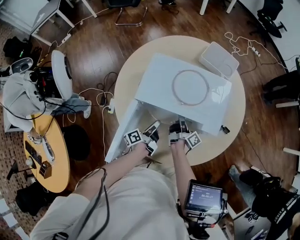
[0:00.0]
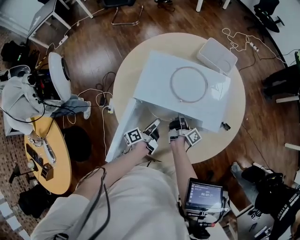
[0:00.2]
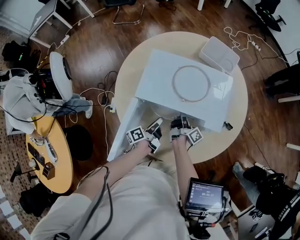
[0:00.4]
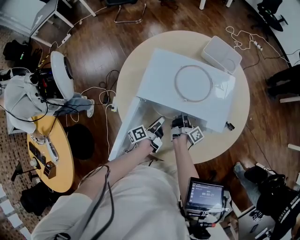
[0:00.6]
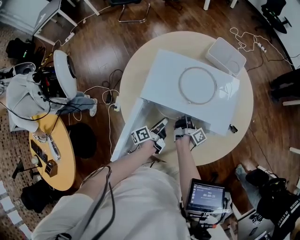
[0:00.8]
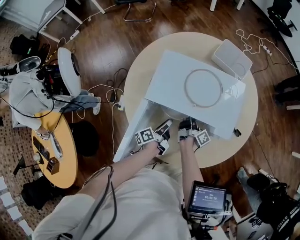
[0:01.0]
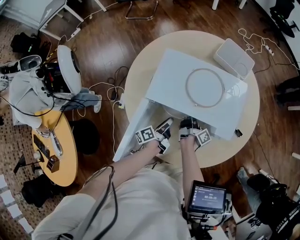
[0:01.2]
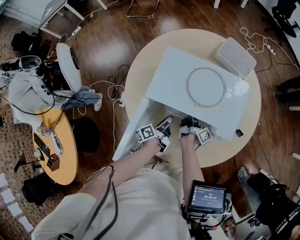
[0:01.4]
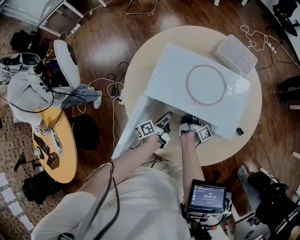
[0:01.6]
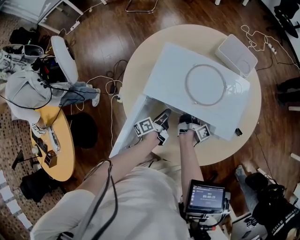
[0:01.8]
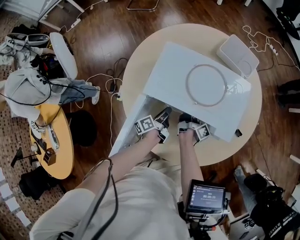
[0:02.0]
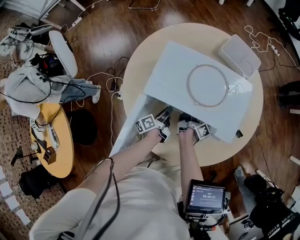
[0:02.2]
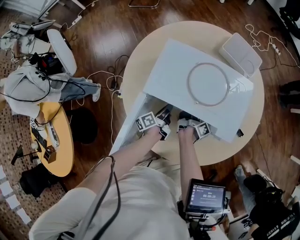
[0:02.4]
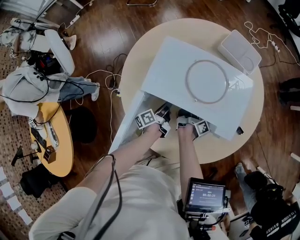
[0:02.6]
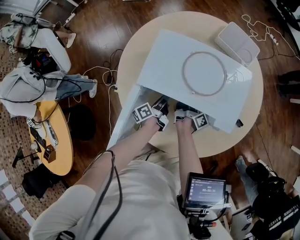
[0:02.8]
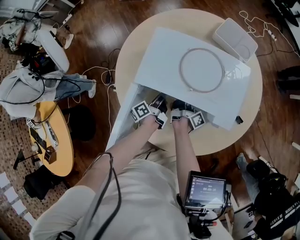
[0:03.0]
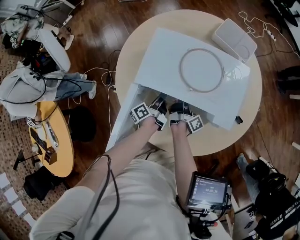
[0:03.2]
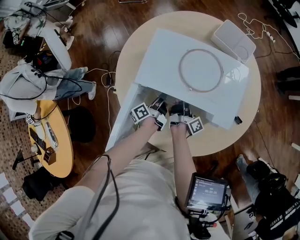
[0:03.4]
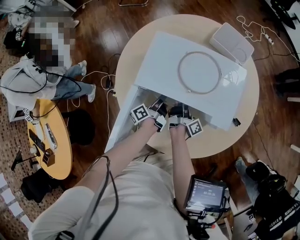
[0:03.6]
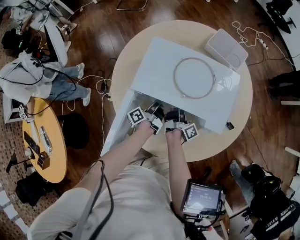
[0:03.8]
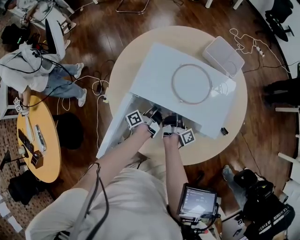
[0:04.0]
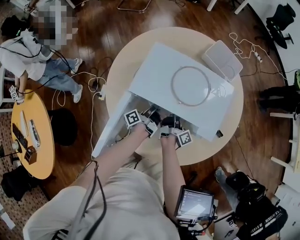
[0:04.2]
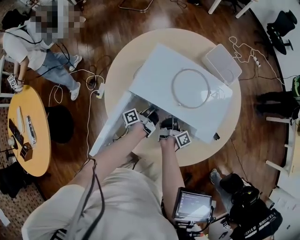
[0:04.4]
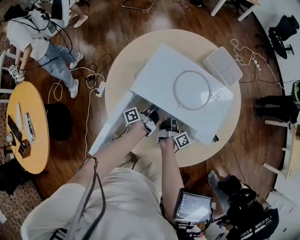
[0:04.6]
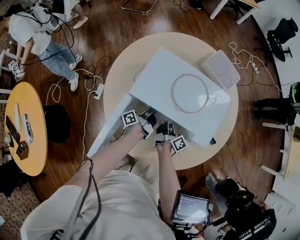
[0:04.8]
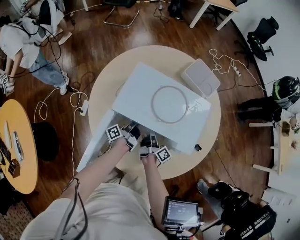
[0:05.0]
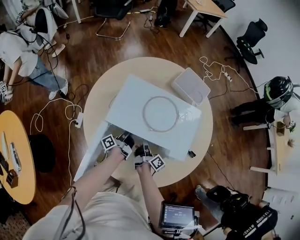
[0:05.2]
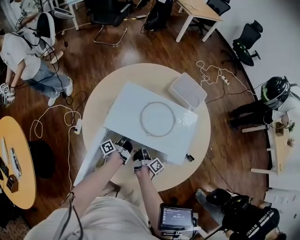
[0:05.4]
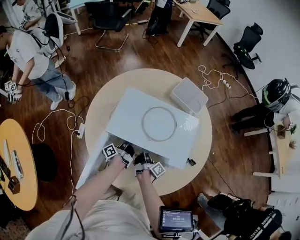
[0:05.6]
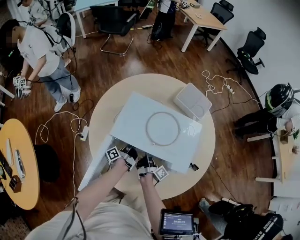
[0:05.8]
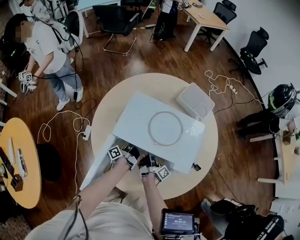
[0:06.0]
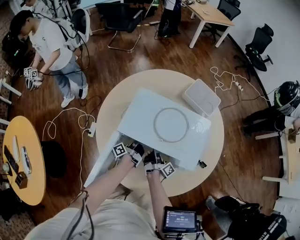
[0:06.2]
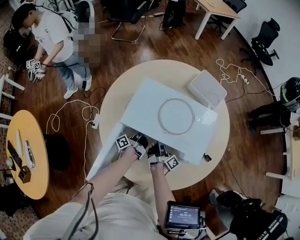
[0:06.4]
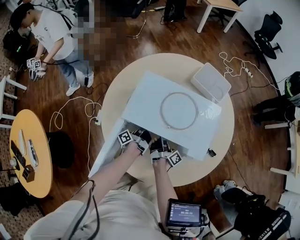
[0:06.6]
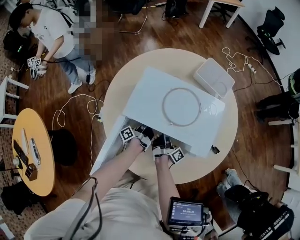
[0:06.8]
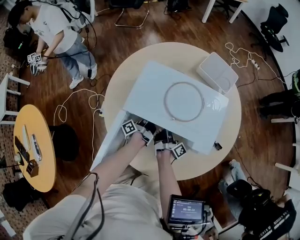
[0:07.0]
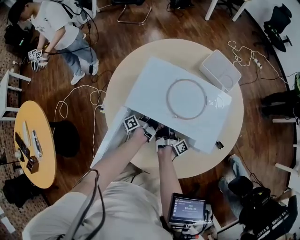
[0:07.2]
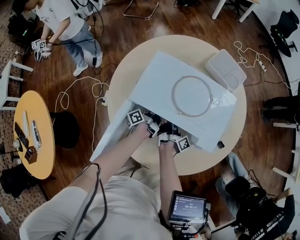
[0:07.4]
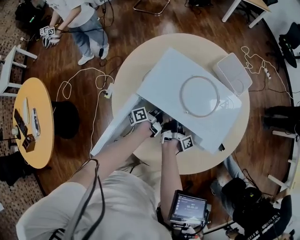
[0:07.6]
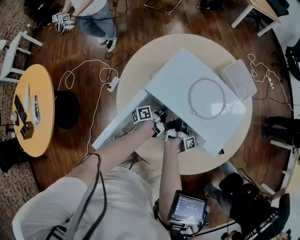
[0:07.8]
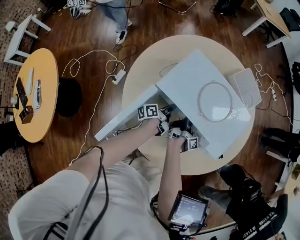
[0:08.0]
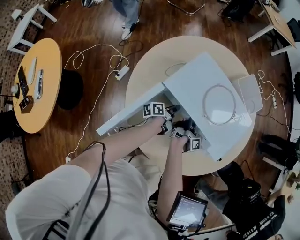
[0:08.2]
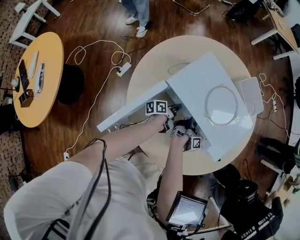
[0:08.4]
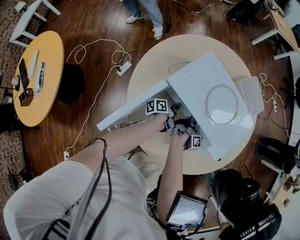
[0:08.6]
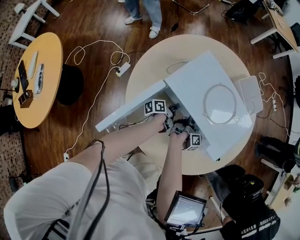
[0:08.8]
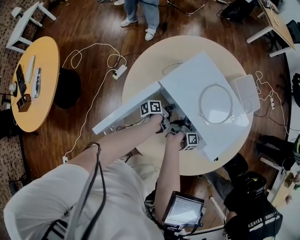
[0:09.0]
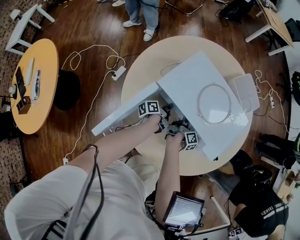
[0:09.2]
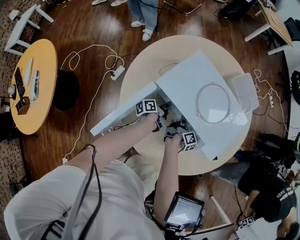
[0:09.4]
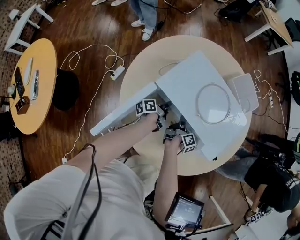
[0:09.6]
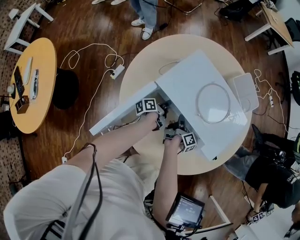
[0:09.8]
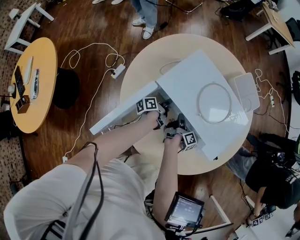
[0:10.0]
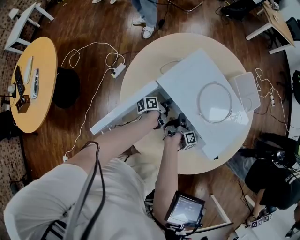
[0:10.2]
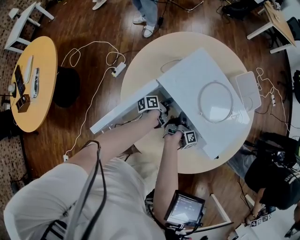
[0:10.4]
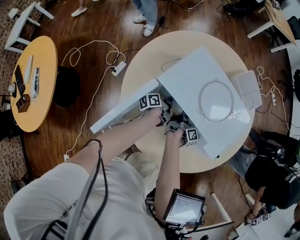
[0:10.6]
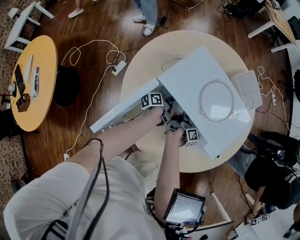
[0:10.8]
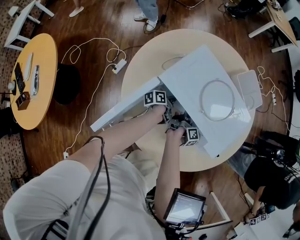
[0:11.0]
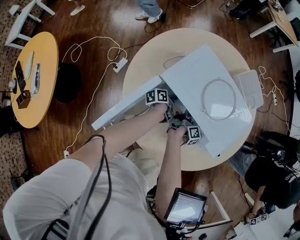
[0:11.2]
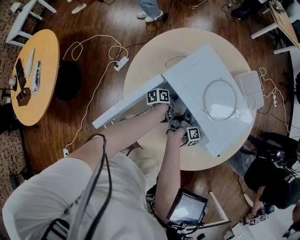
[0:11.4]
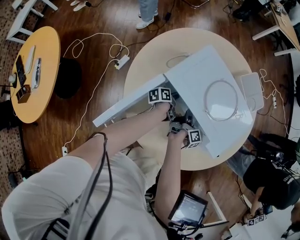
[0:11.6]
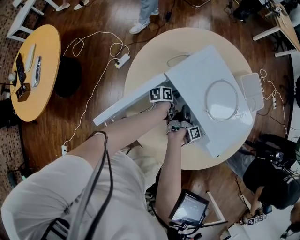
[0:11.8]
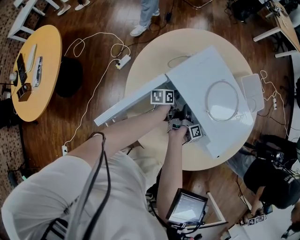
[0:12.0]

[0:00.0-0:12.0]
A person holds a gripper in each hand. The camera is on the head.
0:00.0 to 0:01.6: The right gripper changes place by about 5 cm.
0:07.6 to 0:09.0: The right gripper swivels approximately 20 degrees.

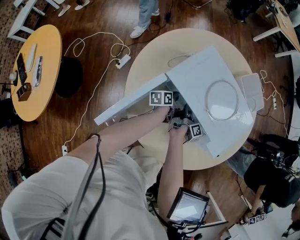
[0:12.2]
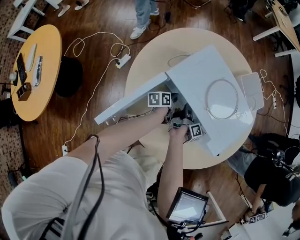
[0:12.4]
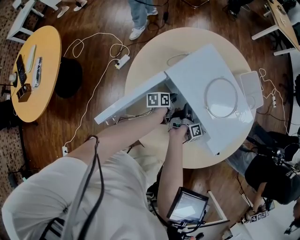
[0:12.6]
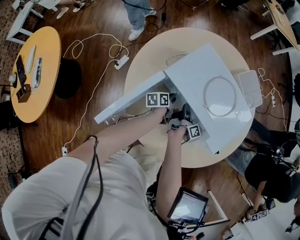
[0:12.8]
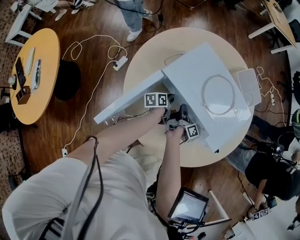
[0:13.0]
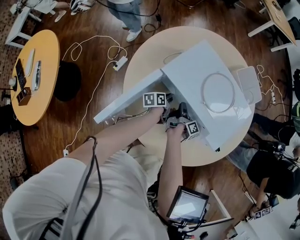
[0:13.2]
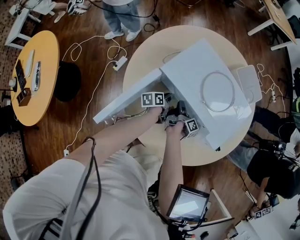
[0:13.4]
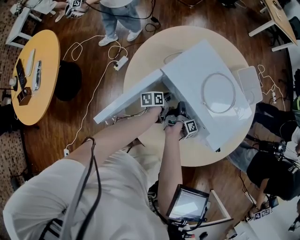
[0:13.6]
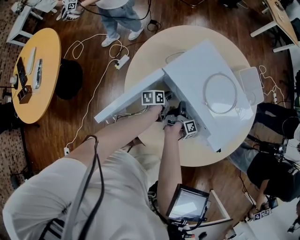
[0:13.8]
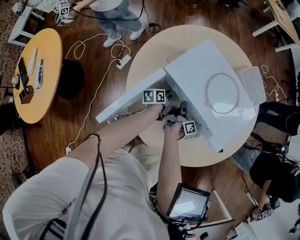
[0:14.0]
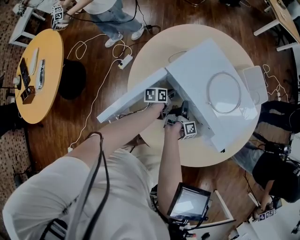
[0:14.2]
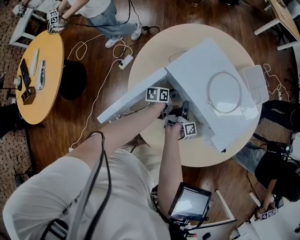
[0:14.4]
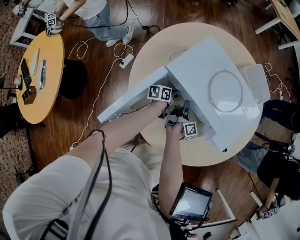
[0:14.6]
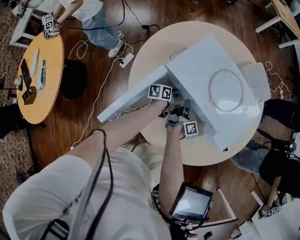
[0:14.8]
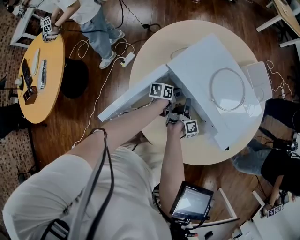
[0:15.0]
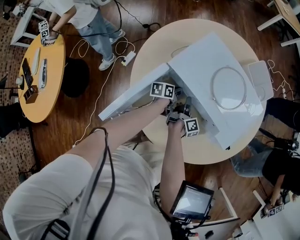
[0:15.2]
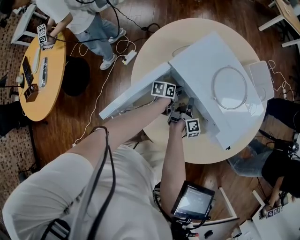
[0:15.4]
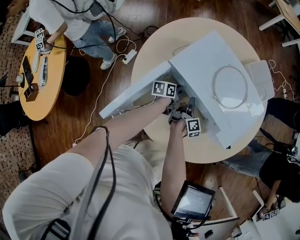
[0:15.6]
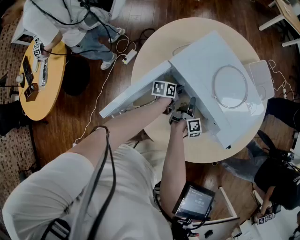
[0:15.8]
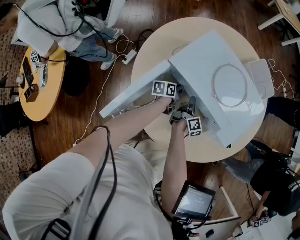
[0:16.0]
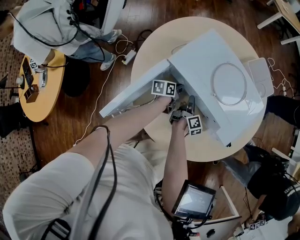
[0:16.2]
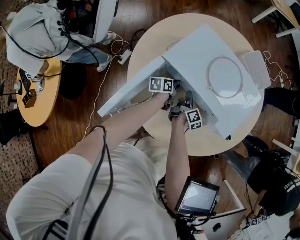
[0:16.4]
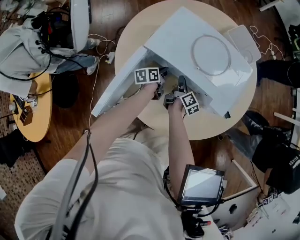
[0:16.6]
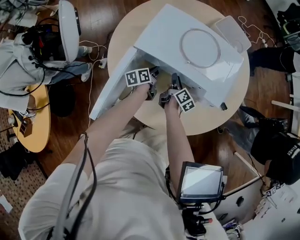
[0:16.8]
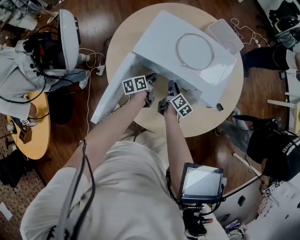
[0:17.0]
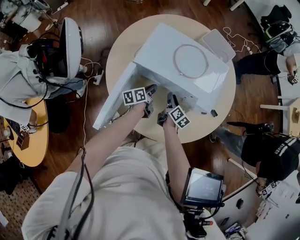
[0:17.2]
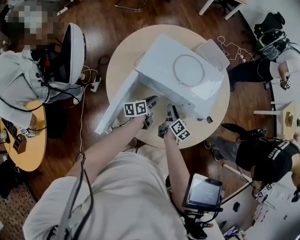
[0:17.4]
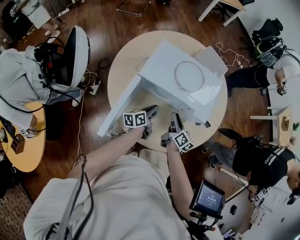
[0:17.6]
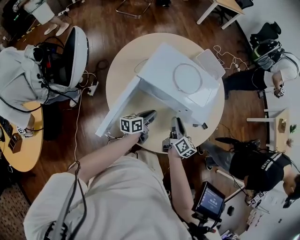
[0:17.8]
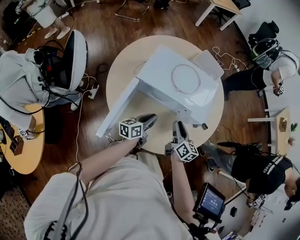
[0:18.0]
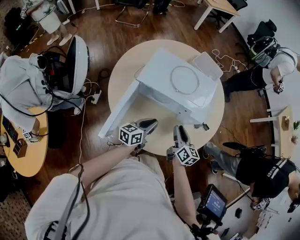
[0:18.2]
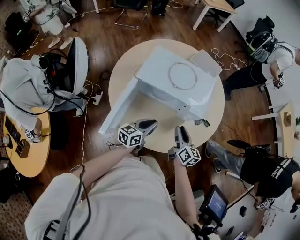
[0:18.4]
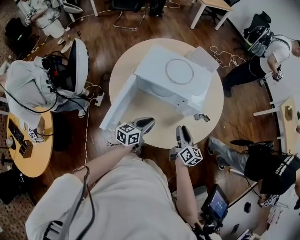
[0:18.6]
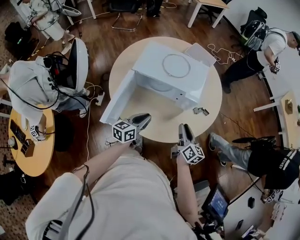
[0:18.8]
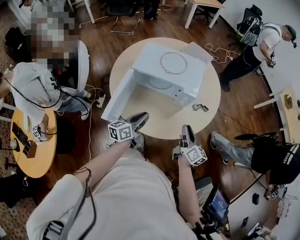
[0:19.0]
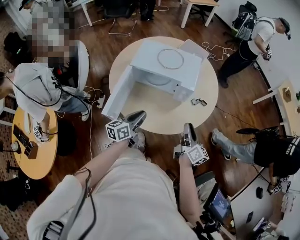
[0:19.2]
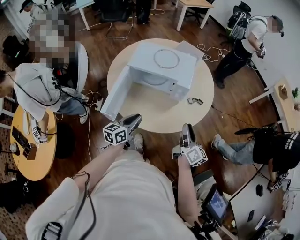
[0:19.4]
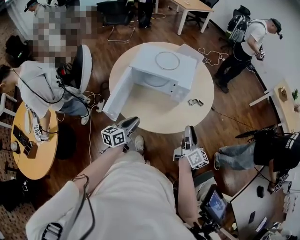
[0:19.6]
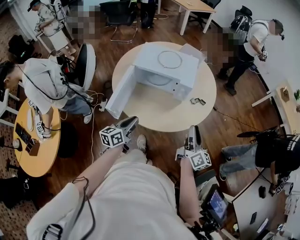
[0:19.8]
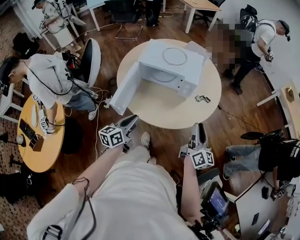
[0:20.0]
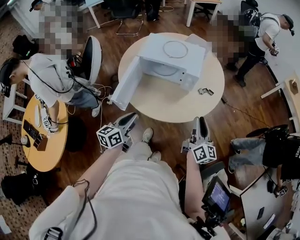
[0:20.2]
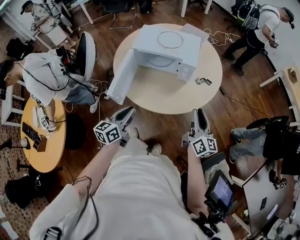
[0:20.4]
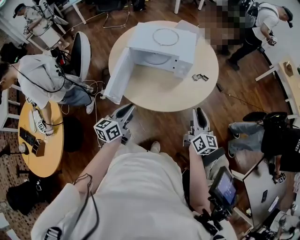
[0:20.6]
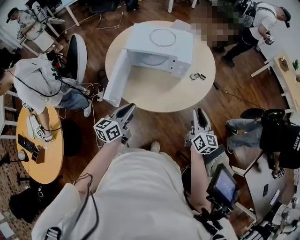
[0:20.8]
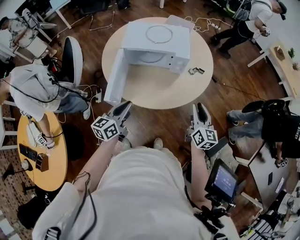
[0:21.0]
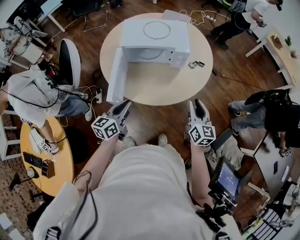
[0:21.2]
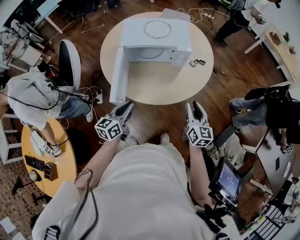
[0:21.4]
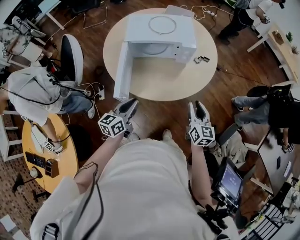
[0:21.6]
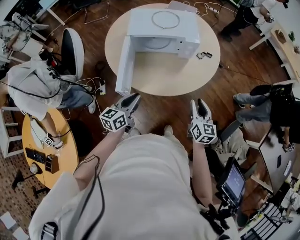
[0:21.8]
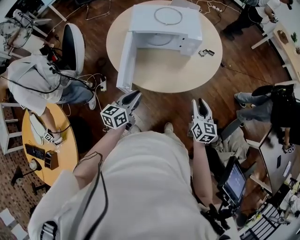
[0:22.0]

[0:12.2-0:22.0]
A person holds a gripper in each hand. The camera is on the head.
0:16.4 to 0:17.8: The right gripper shifts roughly 20 cm upward, and swivels about 30 degrees.
0:17.8 to 0:19.2: The right gripper ends up approximately 25 cm from where it was.
0:19.2 to 0:20.6: The right gripper ends up some 10 cm from where it was, and rotates approximately 20 degrees.
0:20.6 to 0:22.0: The right gripper changes place by roughly 15 cm, and swivels about 20 degrees.

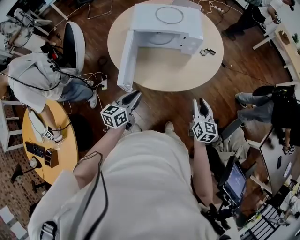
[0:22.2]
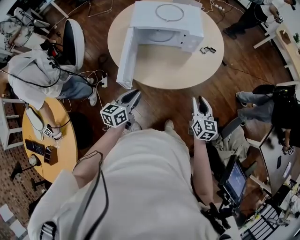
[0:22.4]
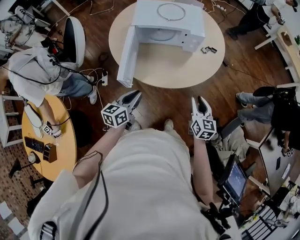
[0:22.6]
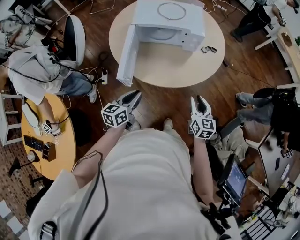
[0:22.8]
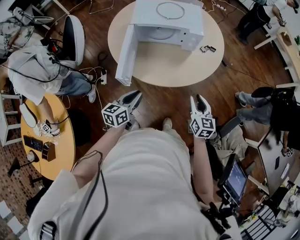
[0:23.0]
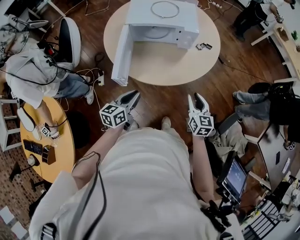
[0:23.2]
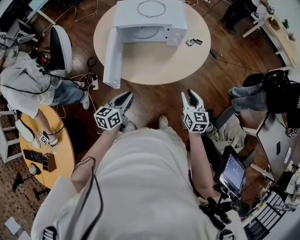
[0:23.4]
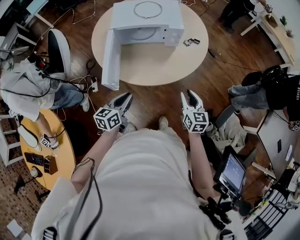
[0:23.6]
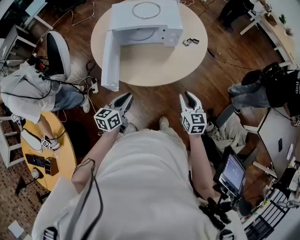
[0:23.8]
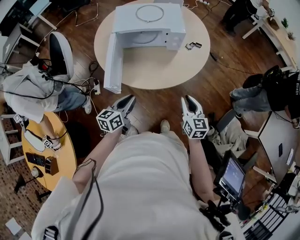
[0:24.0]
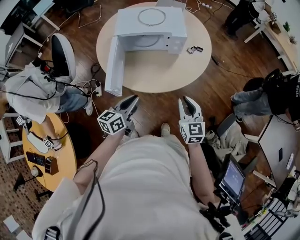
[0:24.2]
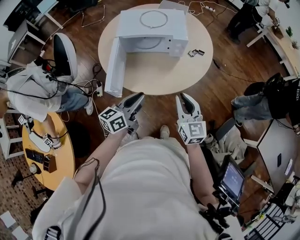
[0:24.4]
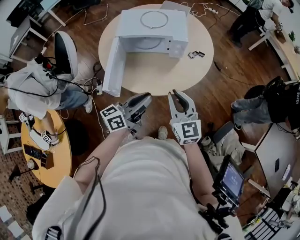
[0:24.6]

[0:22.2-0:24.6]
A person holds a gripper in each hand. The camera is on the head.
0:23.4 to 0:24.6: The right gripper shifts some 15 cm upward, and swivels some 20 degrees.
